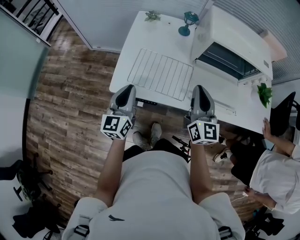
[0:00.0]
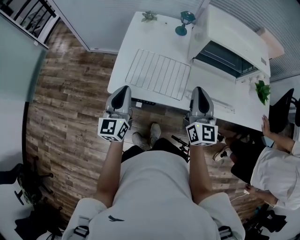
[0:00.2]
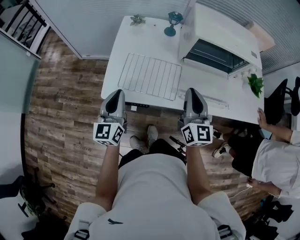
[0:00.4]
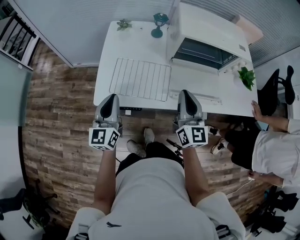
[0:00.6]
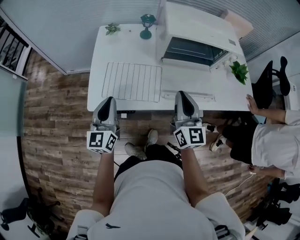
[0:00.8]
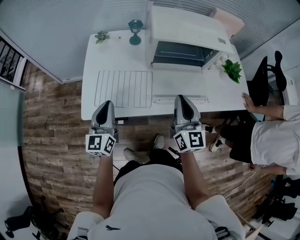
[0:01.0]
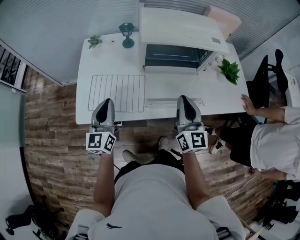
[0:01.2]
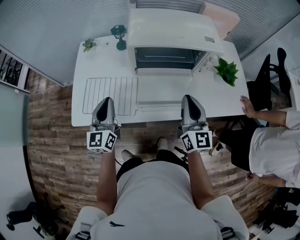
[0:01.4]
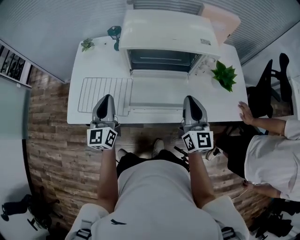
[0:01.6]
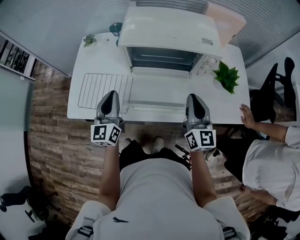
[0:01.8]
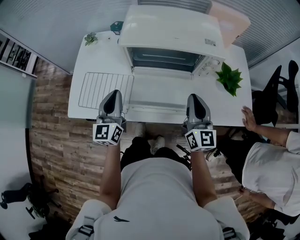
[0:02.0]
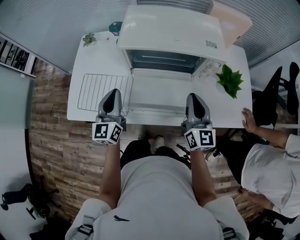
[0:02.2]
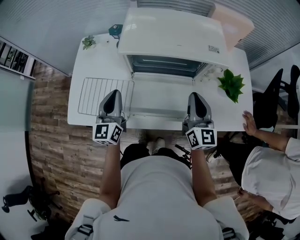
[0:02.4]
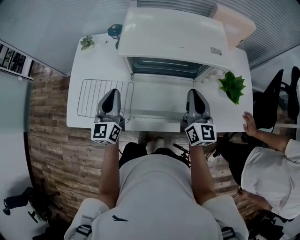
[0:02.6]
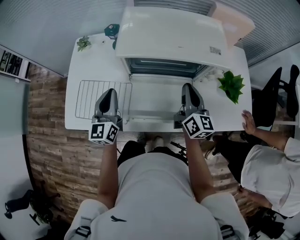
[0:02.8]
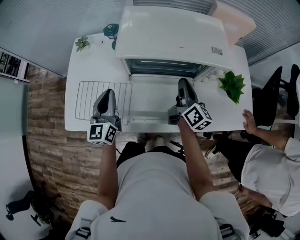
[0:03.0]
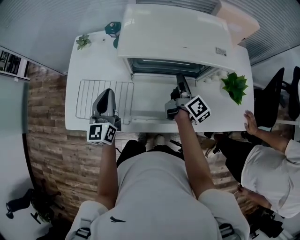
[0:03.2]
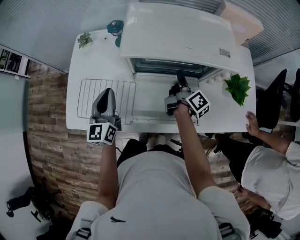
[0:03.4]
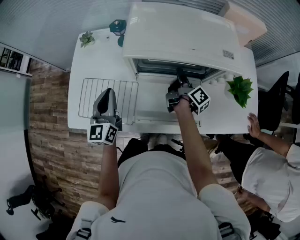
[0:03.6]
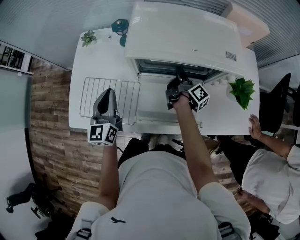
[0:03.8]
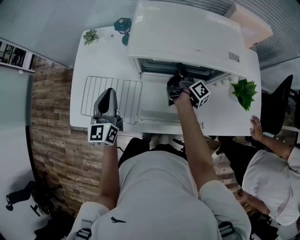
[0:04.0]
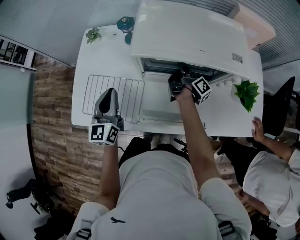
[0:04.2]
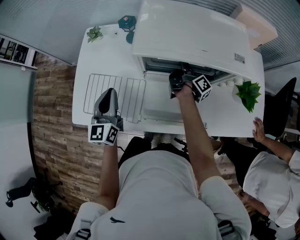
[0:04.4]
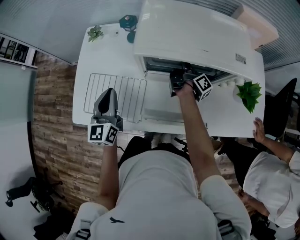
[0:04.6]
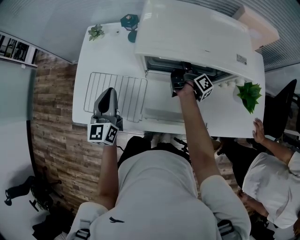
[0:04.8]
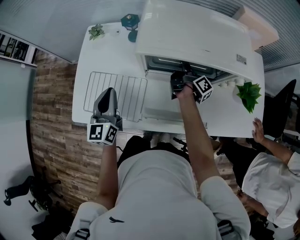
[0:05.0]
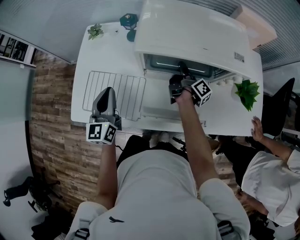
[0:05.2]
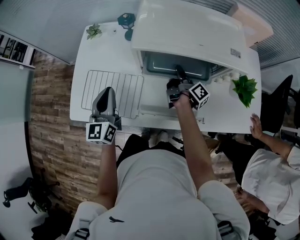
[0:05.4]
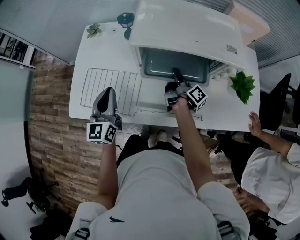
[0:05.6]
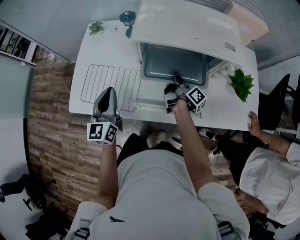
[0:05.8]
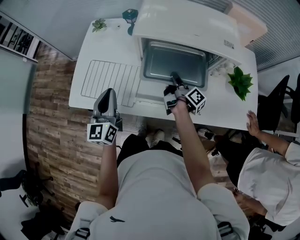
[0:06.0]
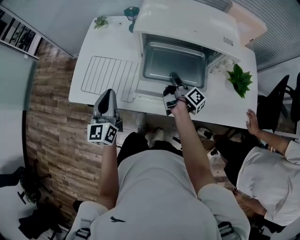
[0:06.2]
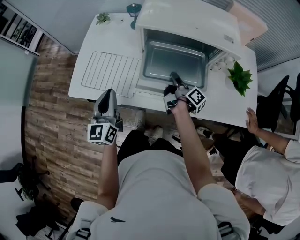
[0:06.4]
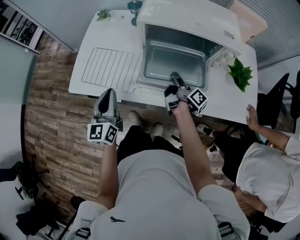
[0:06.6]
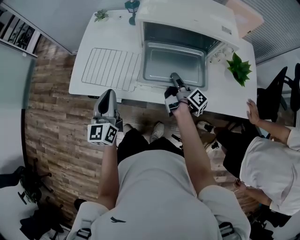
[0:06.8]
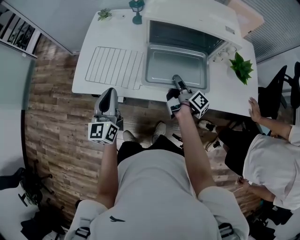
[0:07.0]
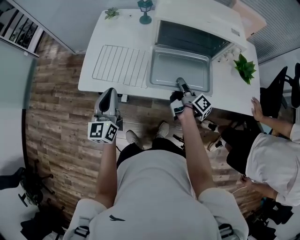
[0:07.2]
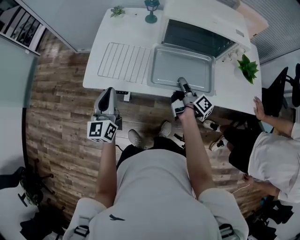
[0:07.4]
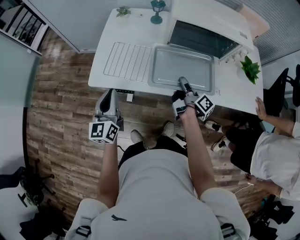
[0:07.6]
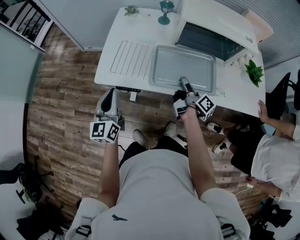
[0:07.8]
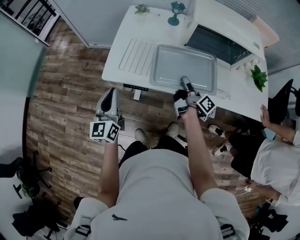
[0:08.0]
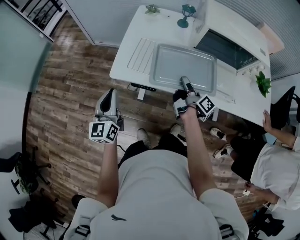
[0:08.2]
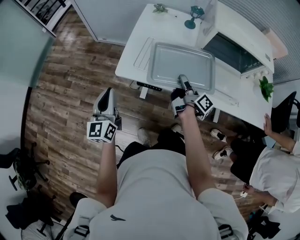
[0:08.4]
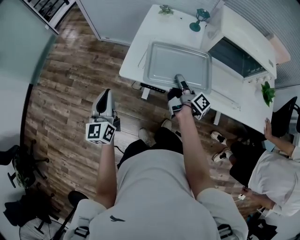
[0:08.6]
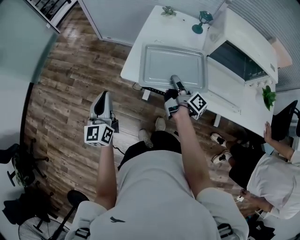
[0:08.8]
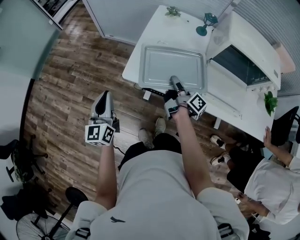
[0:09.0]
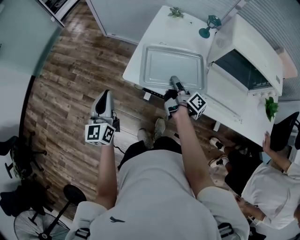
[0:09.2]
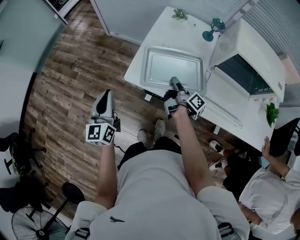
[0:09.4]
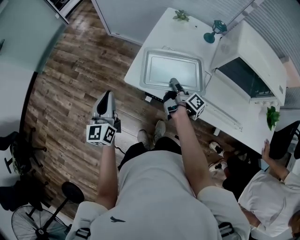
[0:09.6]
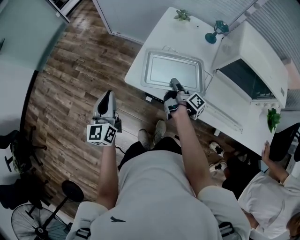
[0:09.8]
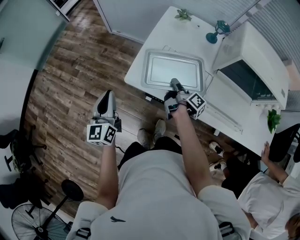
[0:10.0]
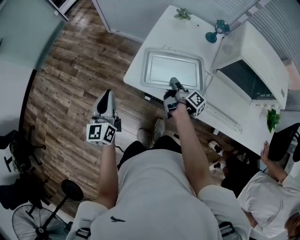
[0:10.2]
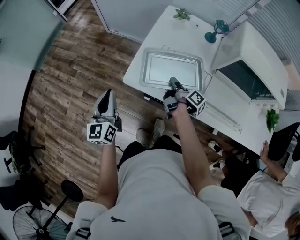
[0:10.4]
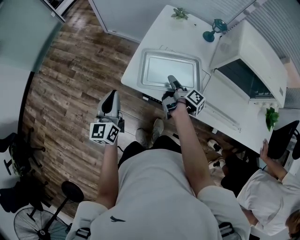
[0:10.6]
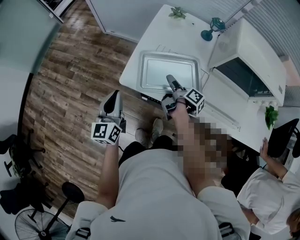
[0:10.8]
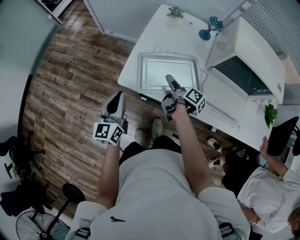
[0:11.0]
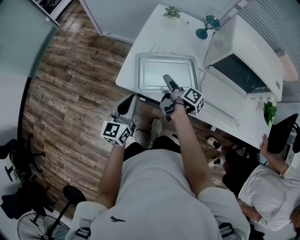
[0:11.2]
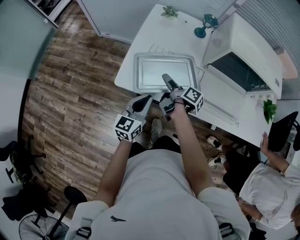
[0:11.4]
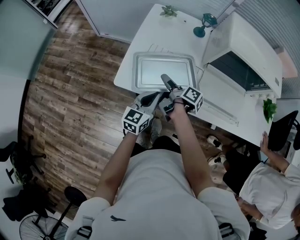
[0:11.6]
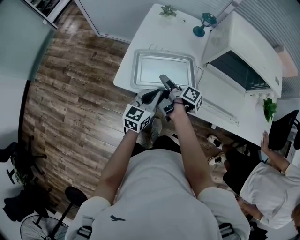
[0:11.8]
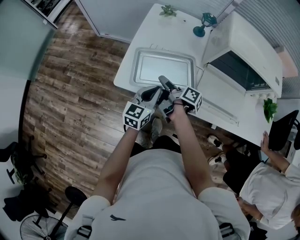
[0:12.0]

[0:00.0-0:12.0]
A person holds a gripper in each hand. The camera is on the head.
0:00.0 to 0:01.6: Both grippers move to the right, about 25 cm.
0:01.6 to 0:03.0: The right gripper is displaced forward and downward by roughly 15 cm, and swivels roughly 40 degrees. The left gripper moves forward, roughly 10 cm.
0:03.0 to 0:04.4: The right gripper heads forward, downward and to the left, covering approximately 15 cm, and rotates around the line of its fingers by roughly 50 degrees, clockwise from behind.
0:04.4 to 0:06.0: Both grippers move backward, about 10 cm.
0:06.0 to 0:07.6: The left gripper heads to the left and backward, covering about 15 cm. The right gripper moves backward and to the left, approximately 15 cm.
0:07.6 to 0:09.0: Both grippers travel together to the left, about 20 cm.
0:09.0 to 0:10.4: The right gripper moves downward and forward, about 10 cm.
0:10.4 to 0:12.0: The left gripper travels to the right by approximately 25 cm, and swivels roughly 30 degrees, while the right gripper opens.

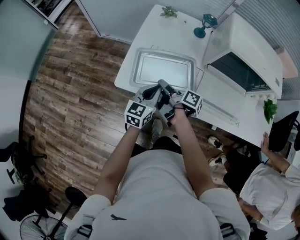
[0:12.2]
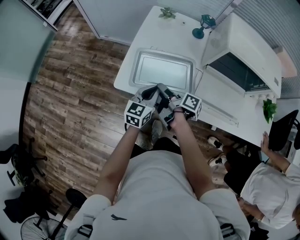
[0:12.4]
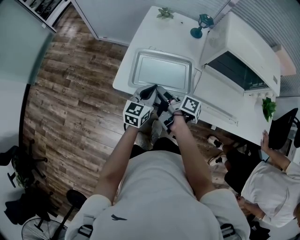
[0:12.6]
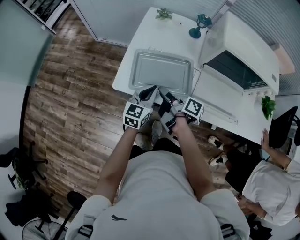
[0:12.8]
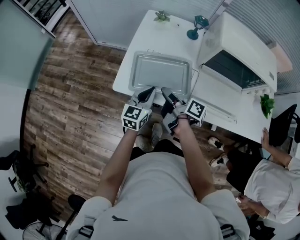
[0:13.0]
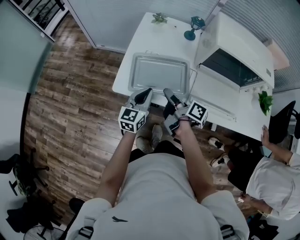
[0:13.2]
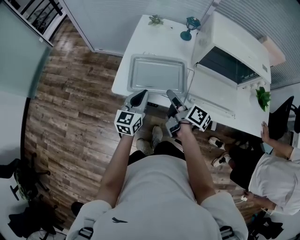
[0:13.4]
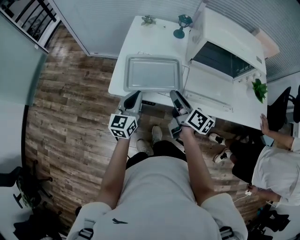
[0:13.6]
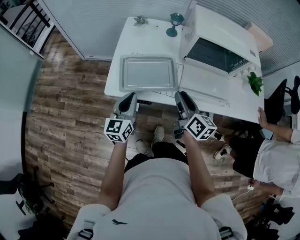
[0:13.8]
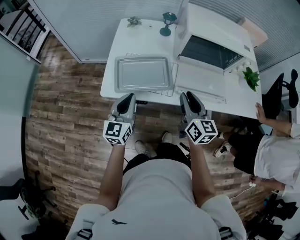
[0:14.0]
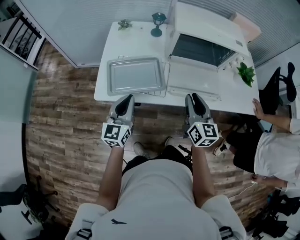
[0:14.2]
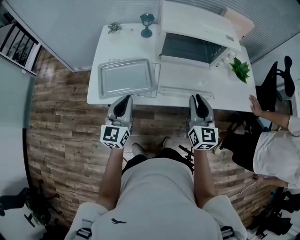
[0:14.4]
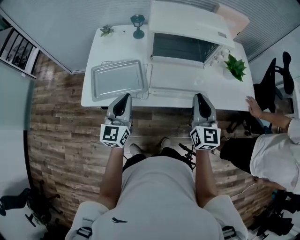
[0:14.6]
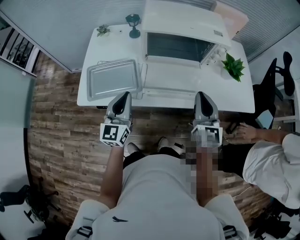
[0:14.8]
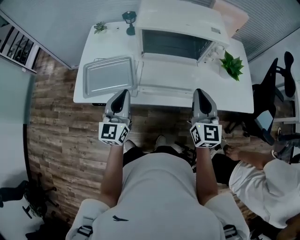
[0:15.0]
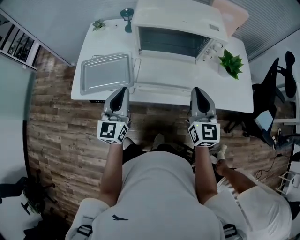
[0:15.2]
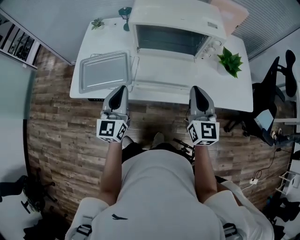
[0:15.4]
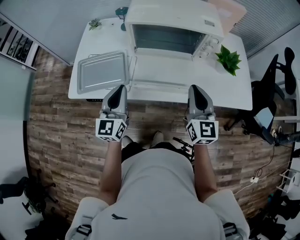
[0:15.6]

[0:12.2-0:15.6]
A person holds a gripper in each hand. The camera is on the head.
0:12.2 to 0:13.8: The left gripper moves to the left, upward and backward, approximately 10 cm. The right gripper heads upward, to the right and backward, covering approximately 20 cm, twists some 50 degrees counterclockwise, seen from behind, and closes its fingers.
0:13.8 to 0:15.6: Both grippers move to the right, about 25 cm. The right gripper changes its angle by approximately 40 degrees, and closes up.

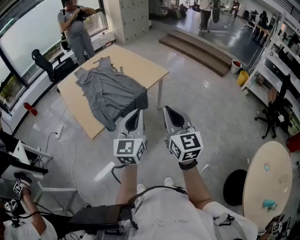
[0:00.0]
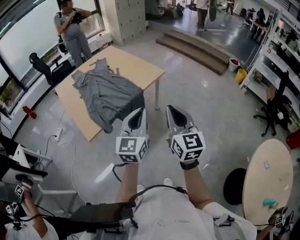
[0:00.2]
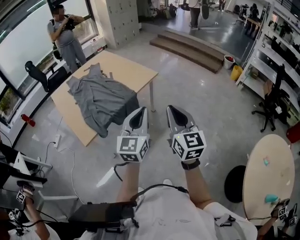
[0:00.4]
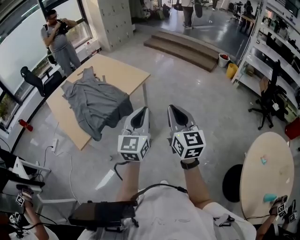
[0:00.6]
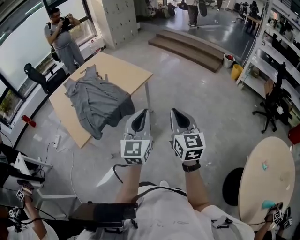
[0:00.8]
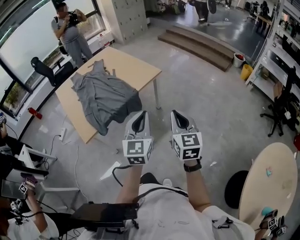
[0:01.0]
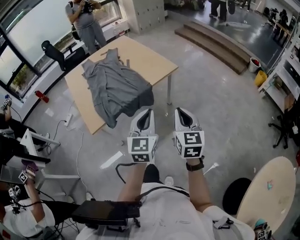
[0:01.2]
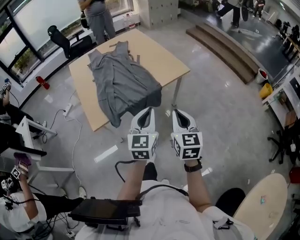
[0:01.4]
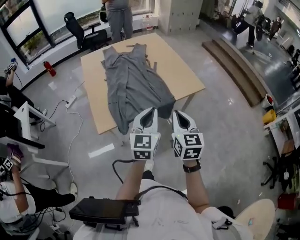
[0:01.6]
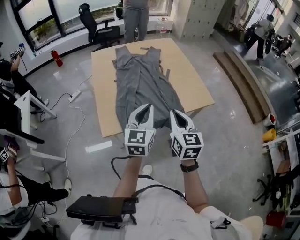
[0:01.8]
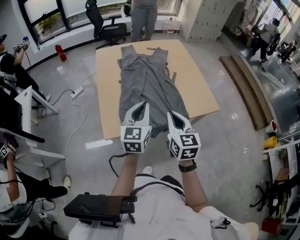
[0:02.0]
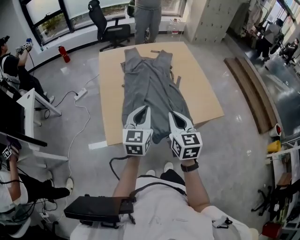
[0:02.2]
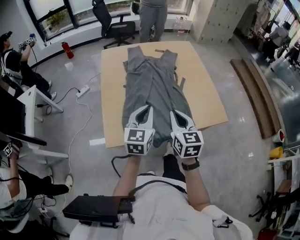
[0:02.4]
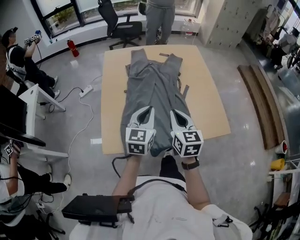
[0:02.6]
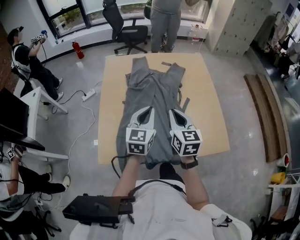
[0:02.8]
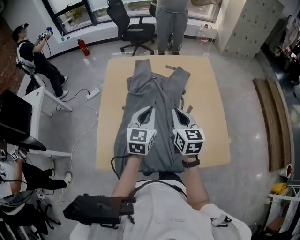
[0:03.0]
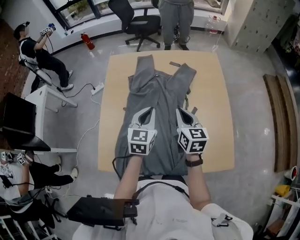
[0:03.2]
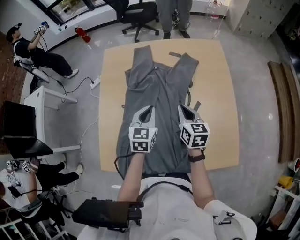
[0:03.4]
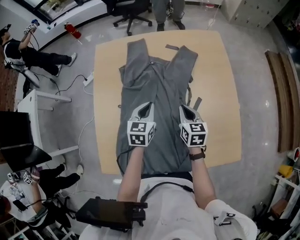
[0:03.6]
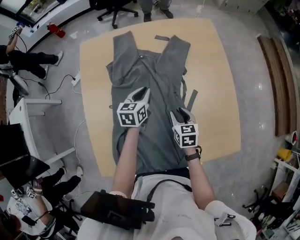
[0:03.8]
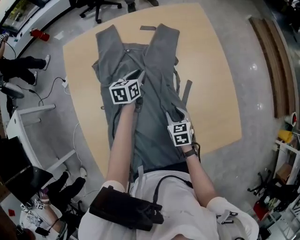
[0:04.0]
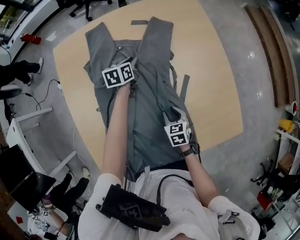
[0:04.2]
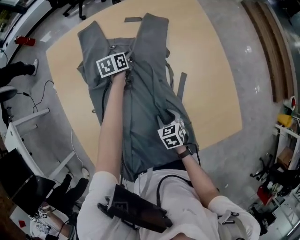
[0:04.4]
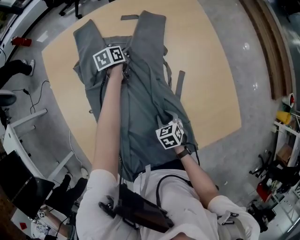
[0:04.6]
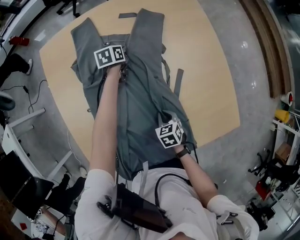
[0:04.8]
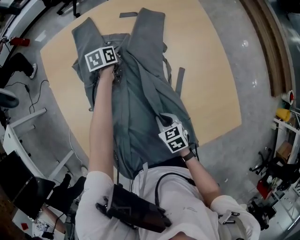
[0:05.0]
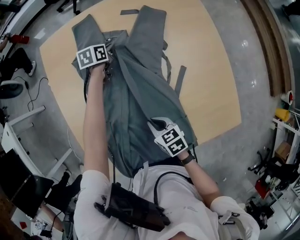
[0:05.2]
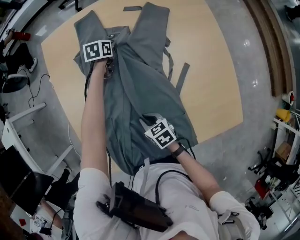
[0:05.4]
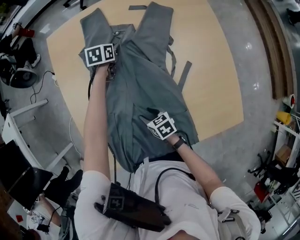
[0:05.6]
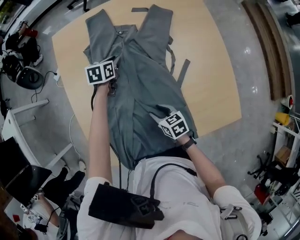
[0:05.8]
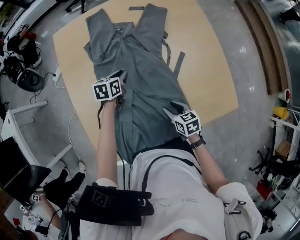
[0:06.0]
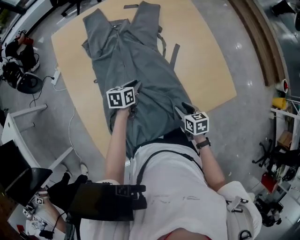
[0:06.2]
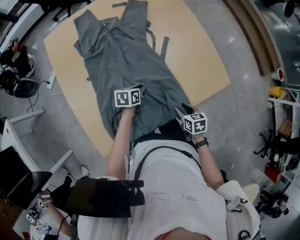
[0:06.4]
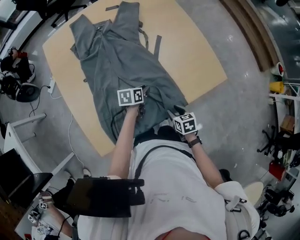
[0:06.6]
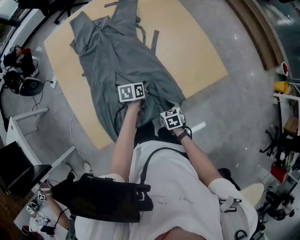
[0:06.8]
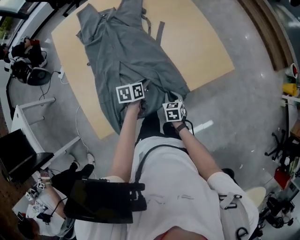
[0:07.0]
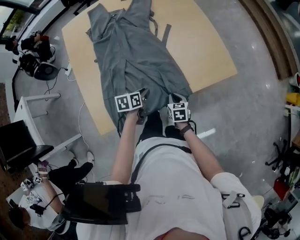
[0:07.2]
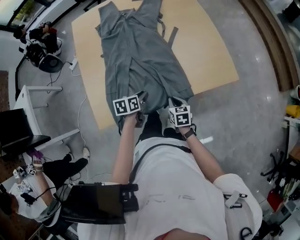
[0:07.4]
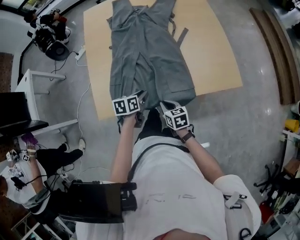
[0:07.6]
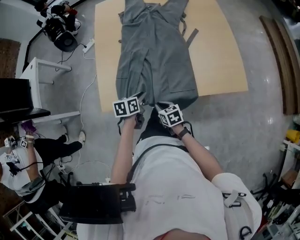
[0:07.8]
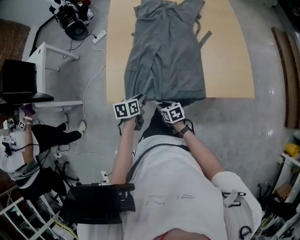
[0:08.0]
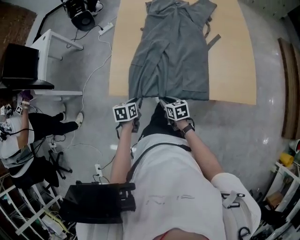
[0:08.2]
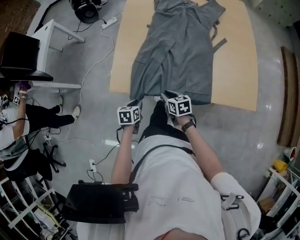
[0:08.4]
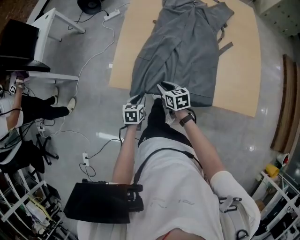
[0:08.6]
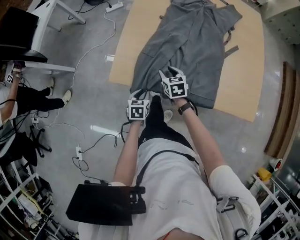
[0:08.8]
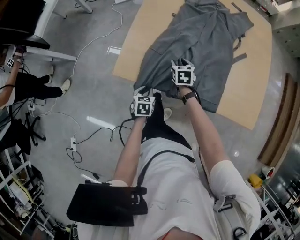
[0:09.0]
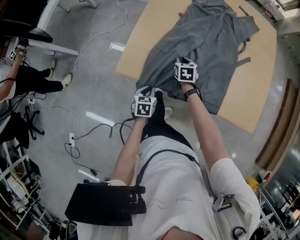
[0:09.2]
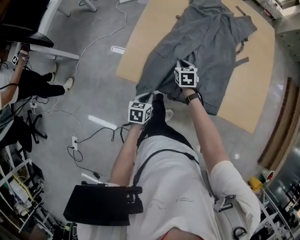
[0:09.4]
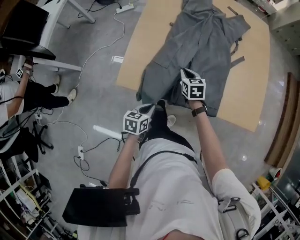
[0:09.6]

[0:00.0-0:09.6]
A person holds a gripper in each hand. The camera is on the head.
0:00.0 to 0:01.6: Both grippers move forward and downward, roughly 20 cm. The right gripper reaches approximately 15 cm to the right, then returns, and rotates about 20 degrees. The left gripper reaches about 15 cm to the right, then returns, and rotates roughly 20 degrees.
0:01.6 to 0:03.2: Both grippers are carried approximately 50 cm. The left gripper changes its angle by approximately 30 degrees. The right gripper changes its angle by about 30 degrees.
0:03.2 to 0:04.8: The right gripper goes approximately 30 cm downward, tips its fingers downward by some 40 degrees, and opens, then closes once more, while the left gripper is displaced downward and forward by about 40 cm, and turns by about 40 degrees.
0:04.8 to 0:06.4: The left gripper changes place by approximately 40 cm, and swivels about 20 degrees. Meanwhile the right gripper moves up and down over about 10 cm, changing direction 2 times, swivels approximately 30 degrees, and opens its fingers.
0:06.4 to 0:08.0: The right gripper goes up and down, roughly 10 cm each way, reversing 2 times, and turns by about 40 degrees, while the left gripper moves about 25 cm, and swivels approximately 30 degrees.
0:08.0 to 0:09.6: The left gripper goes roughly 5 cm backward, and travels downward and back again, approximately 10 cm each way; the right gripper is displaced forward by about 20 cm, and changes its angle by roughly 20 degrees.
